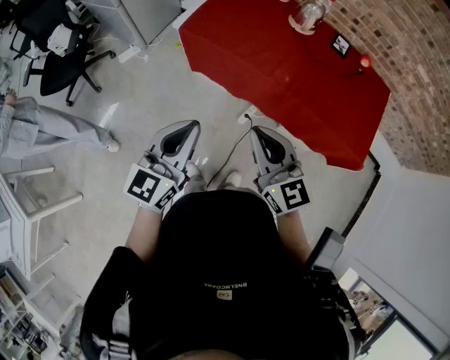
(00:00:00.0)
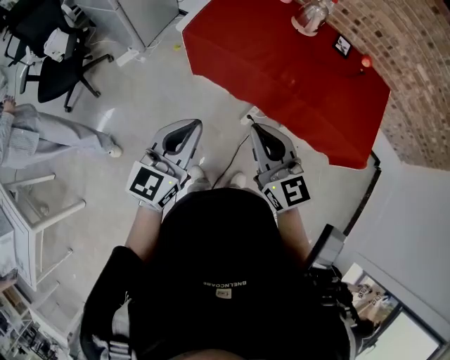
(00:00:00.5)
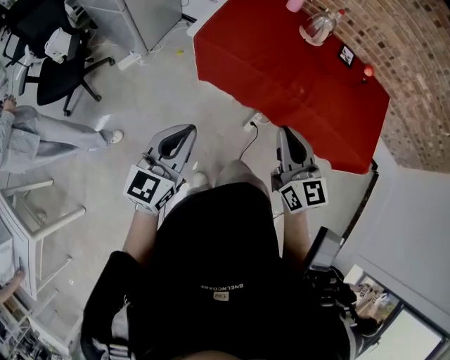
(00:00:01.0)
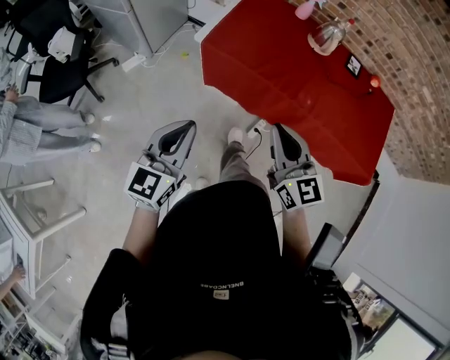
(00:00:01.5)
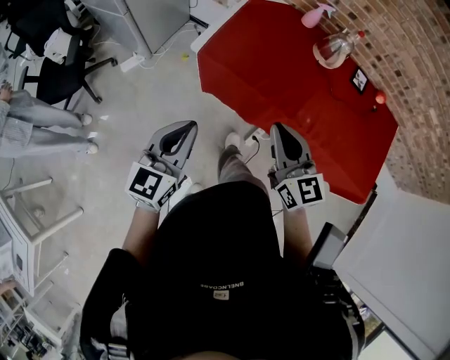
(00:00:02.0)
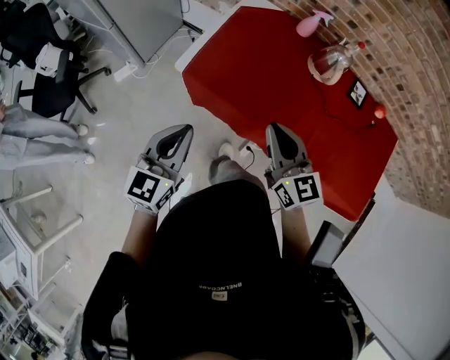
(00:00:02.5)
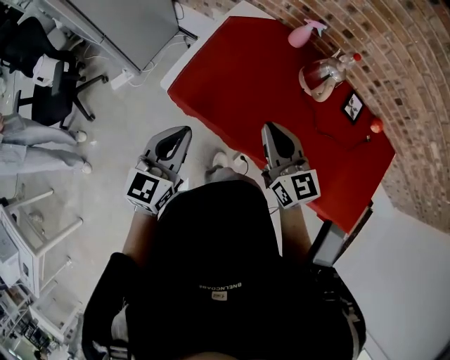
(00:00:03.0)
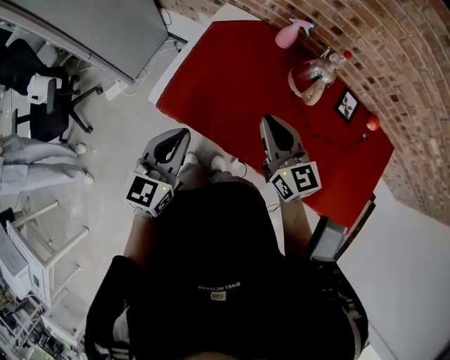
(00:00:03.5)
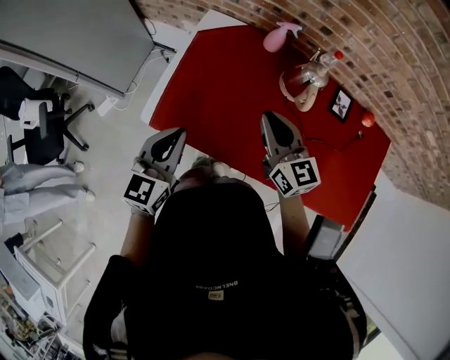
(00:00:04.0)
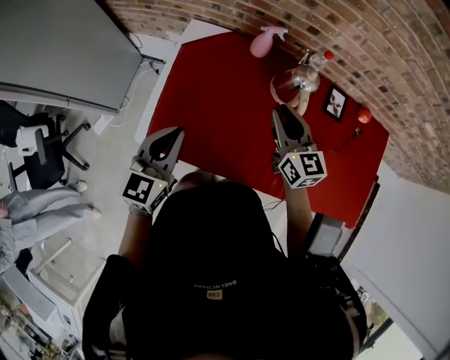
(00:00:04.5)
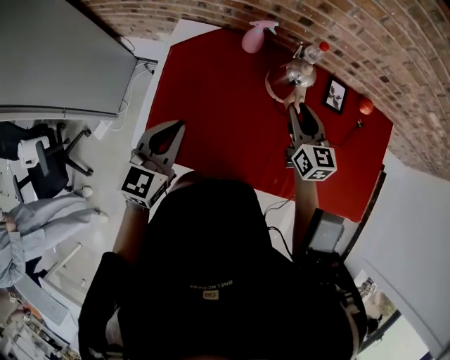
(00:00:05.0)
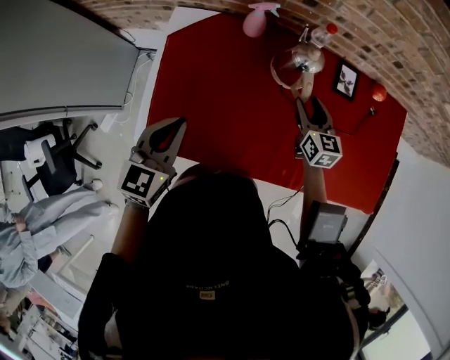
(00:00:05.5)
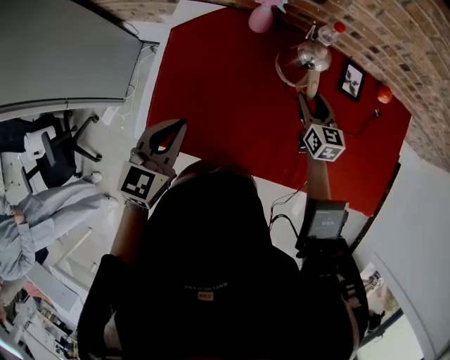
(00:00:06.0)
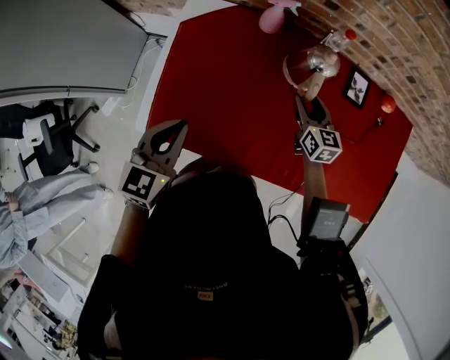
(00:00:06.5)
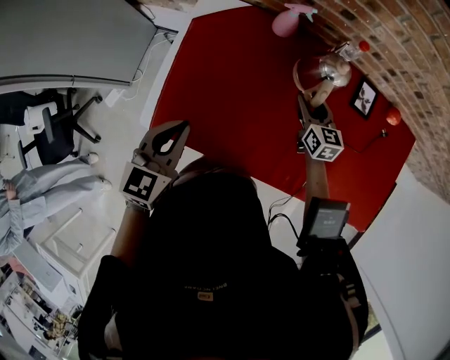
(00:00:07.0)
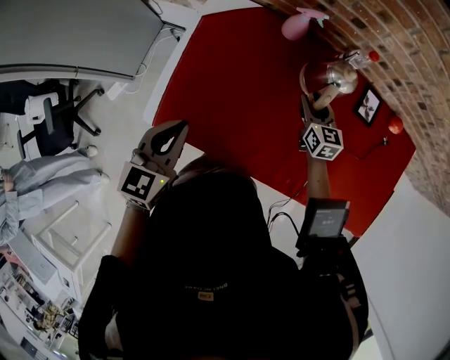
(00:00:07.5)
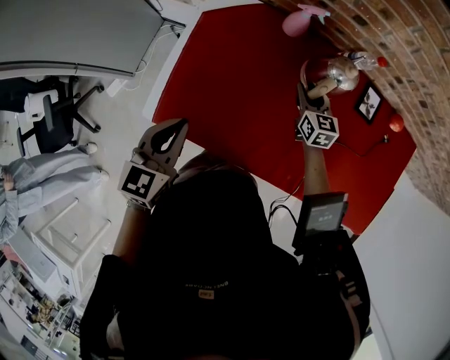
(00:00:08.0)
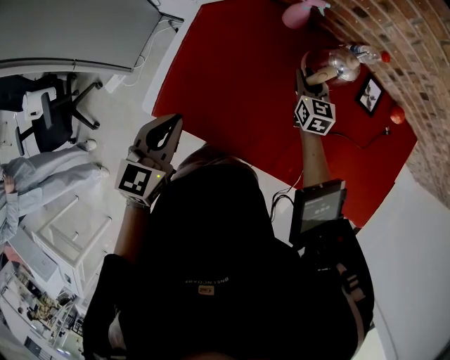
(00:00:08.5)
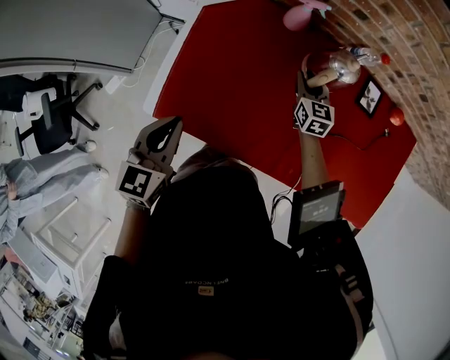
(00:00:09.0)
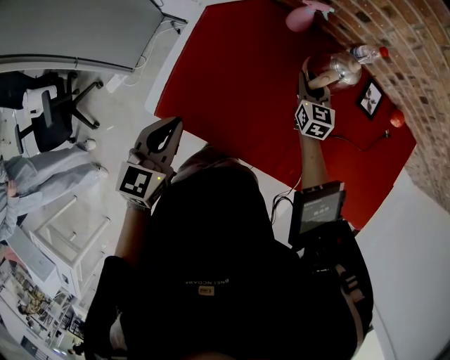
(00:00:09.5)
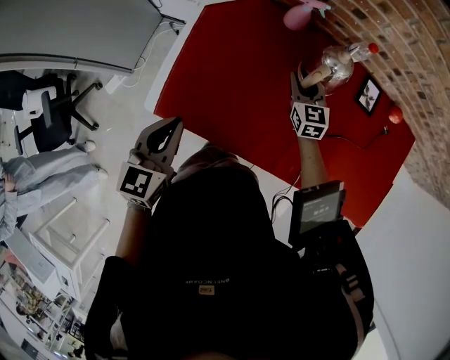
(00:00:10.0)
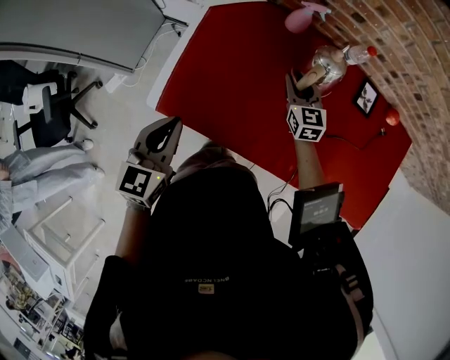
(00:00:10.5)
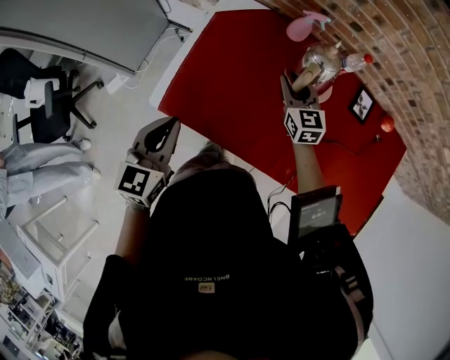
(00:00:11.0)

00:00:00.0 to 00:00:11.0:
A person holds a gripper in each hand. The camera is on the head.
00:00:00.0 to 00:00:02.0: The right gripper goes some 20 cm forward. Meanwhile the left gripper goes roughly 20 cm forward and to the left.
00:00:02.0 to 00:00:03.5: Both grippers move forward and to the right, approximately 25 cm.
00:00:03.5 to 00:00:05.5: The right gripper ends up some 30 cm from where it was, turns by about 40 degrees, and opens its fingers. Meanwhile the left gripper ends up some 20 cm from where it was, and rotates about 20 degrees.
00:00:05.5 to 00:00:07.5: The right gripper is displaced to the left and downward by about 10 cm, while the left gripper shifts by roughly 5 cm.
00:00:07.5 to 00:00:09.0: The grippers move only a little.
00:00:09.0 to 00:00:11.0: The left gripper shifts by about 5 cm, while the right gripper moves upward, to the left and backward, about 10 cm.

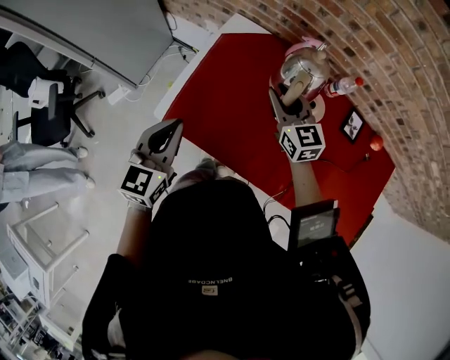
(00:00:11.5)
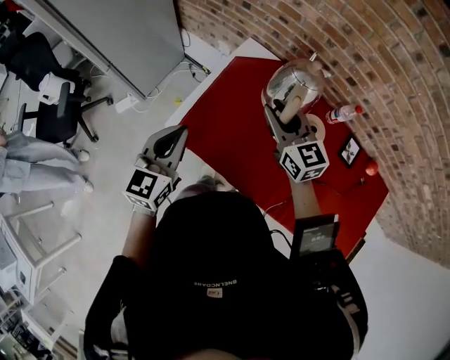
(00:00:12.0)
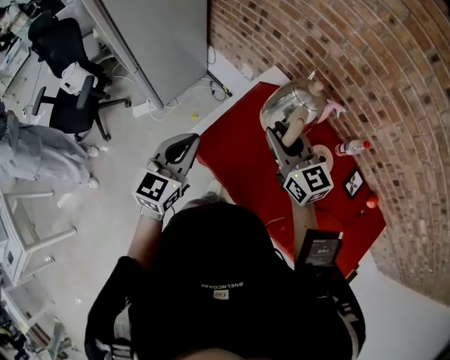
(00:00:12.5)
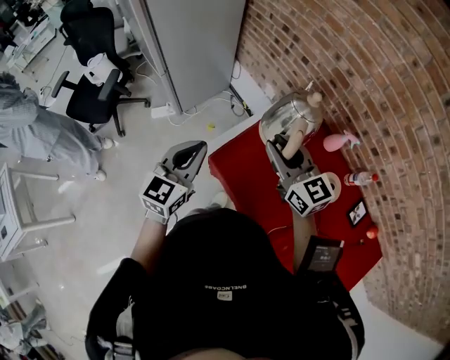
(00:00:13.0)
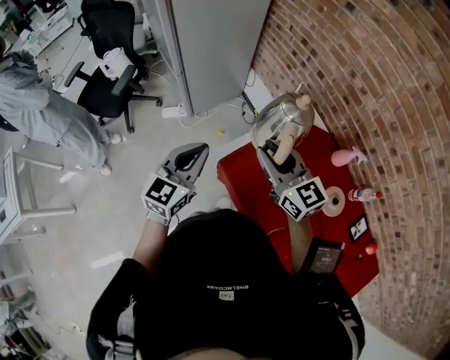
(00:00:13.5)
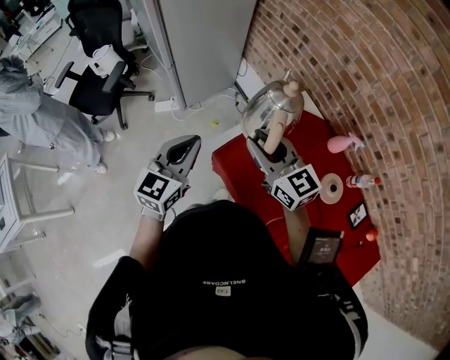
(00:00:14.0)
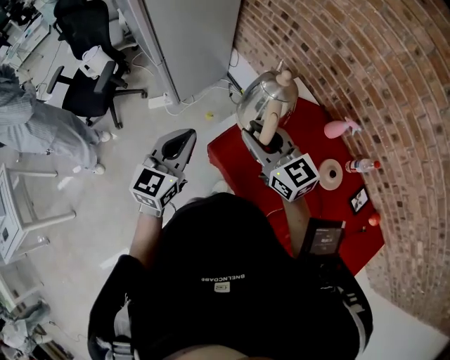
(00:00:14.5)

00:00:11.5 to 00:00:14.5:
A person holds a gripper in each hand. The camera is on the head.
00:00:11.5 to 00:00:13.0: The left gripper is displaced to the left and upward by approximately 15 cm, while the right gripper is displaced to the left and upward by approximately 25 cm, and turns by approximately 30 degrees.
00:00:13.0 to 00:00:14.5: The right gripper shifts roughly 5 cm to the left.

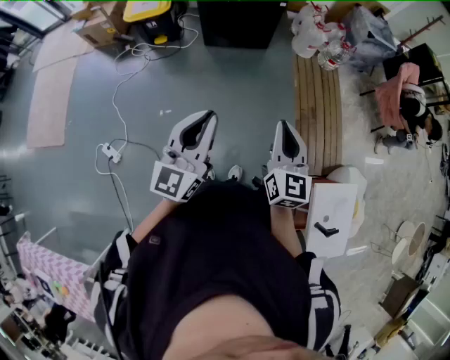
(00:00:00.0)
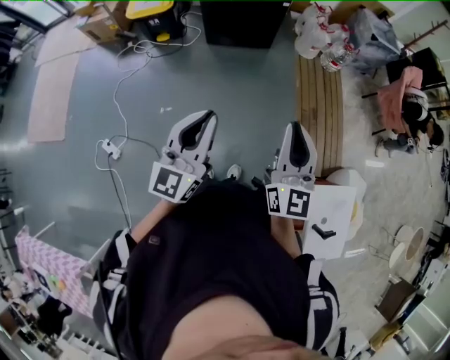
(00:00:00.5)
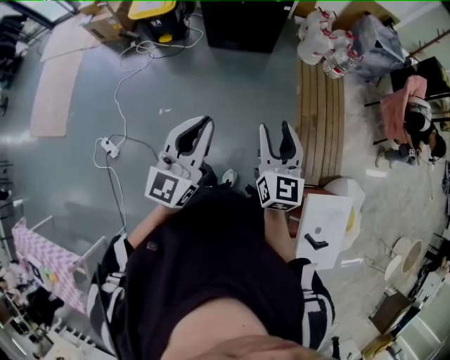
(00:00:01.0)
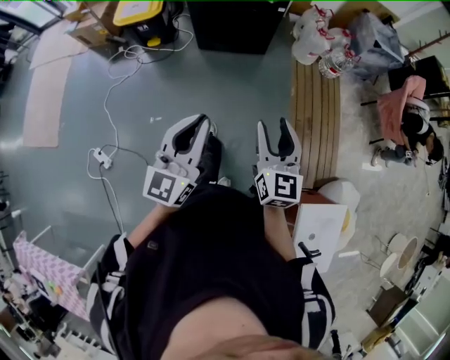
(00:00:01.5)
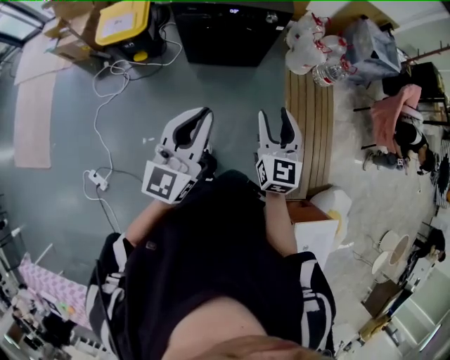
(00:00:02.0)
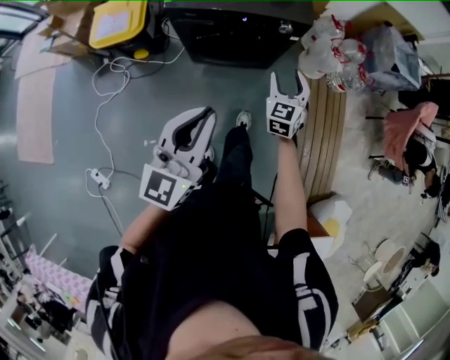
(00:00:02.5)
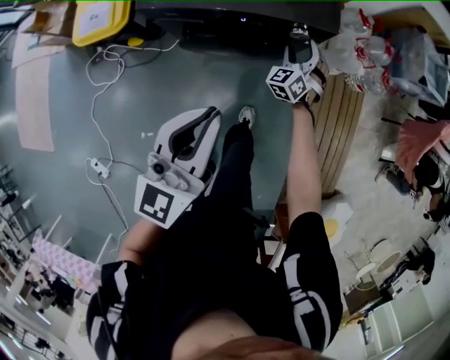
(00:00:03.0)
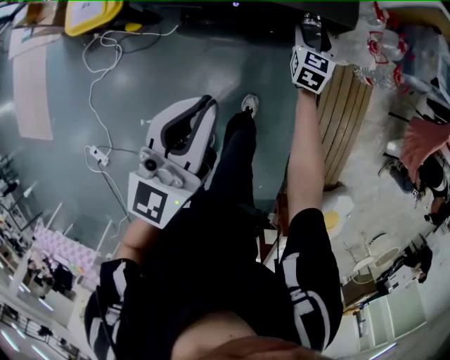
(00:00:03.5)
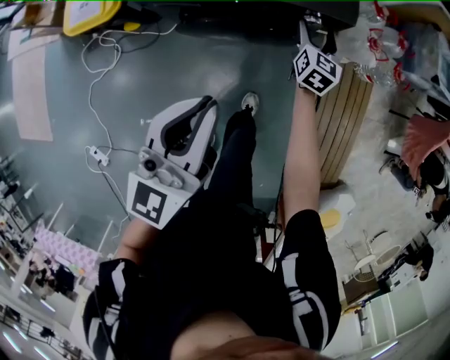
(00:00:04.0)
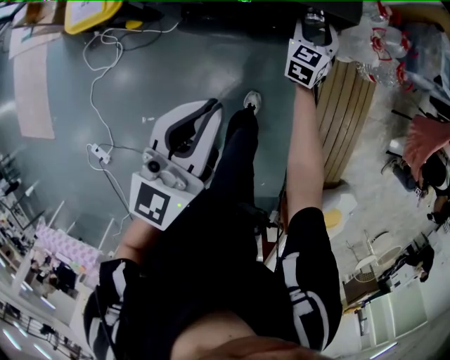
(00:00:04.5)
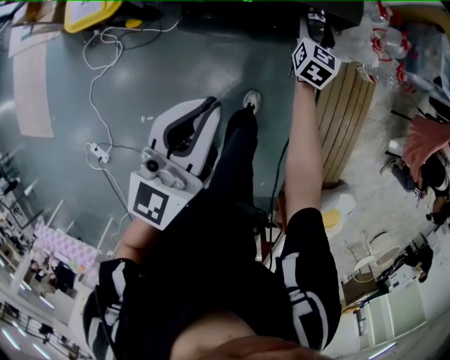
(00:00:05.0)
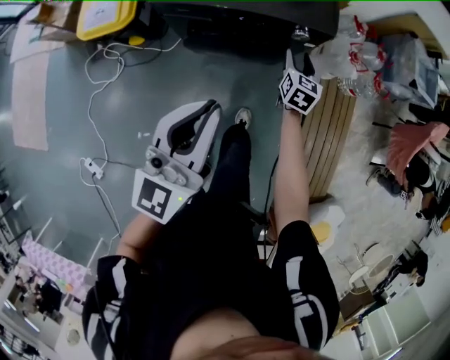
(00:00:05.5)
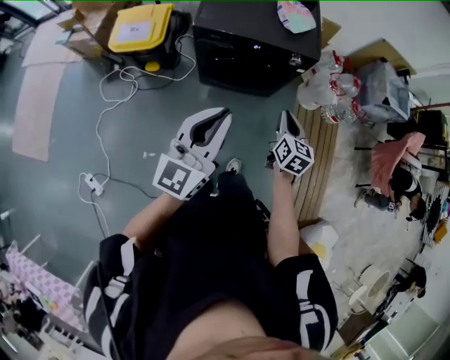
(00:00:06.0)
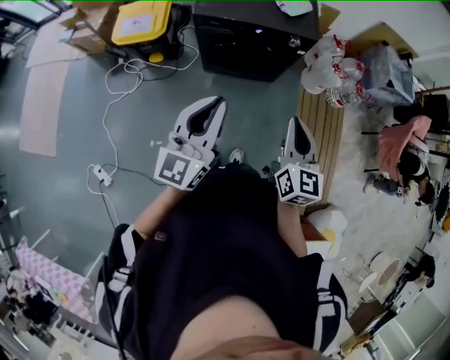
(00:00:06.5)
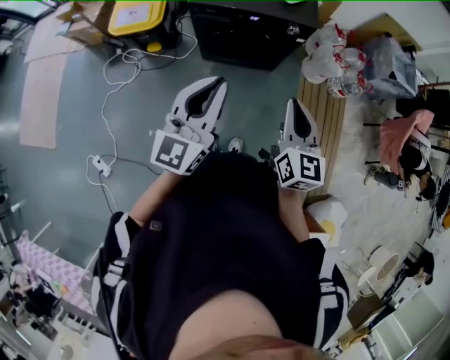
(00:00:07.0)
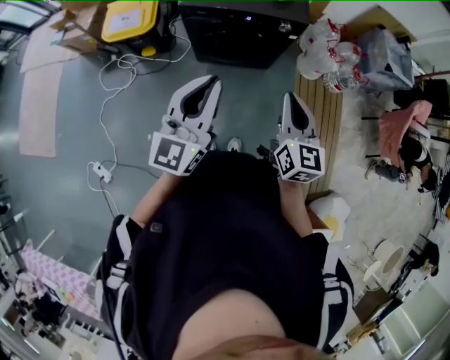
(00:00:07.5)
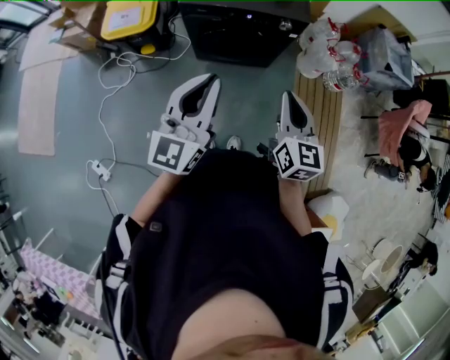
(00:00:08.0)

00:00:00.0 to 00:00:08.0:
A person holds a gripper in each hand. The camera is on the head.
00:00:00.0 to 00:00:02.0: The grippers both shift forward by approximately 40 cm. The right gripper opens its fingers.
00:00:02.0 to 00:00:04.0: The left gripper heads forward and downward, covering some 40 cm. Meanwhile the right gripper moves forward and downward, some 70 cm.
00:00:04.0 to 00:00:06.0: The right gripper travels backward and upward by approximately 40 cm, and closes; the left gripper moves backward and upward, about 25 cm.
00:00:06.0 to 00:00:08.0: The right gripper goes about 15 cm upward and backward.

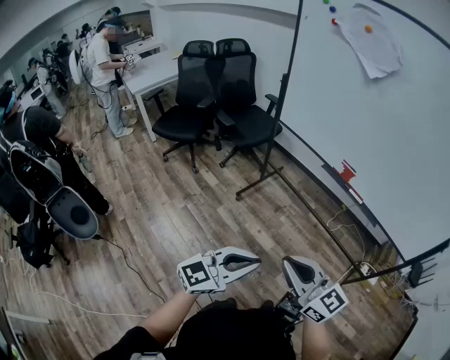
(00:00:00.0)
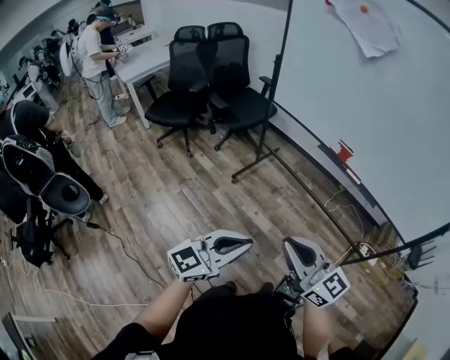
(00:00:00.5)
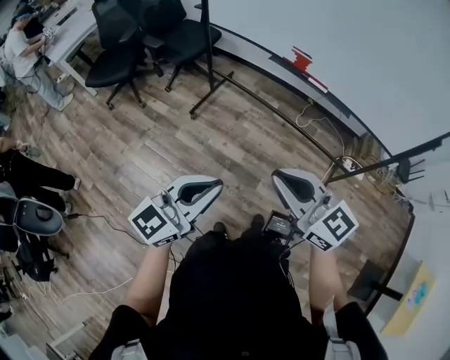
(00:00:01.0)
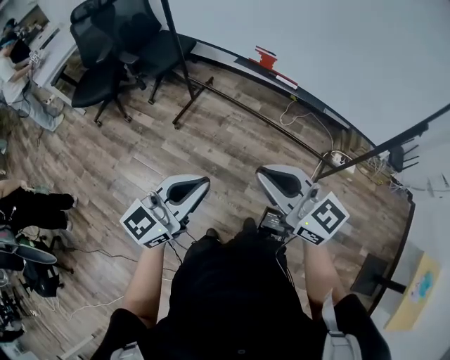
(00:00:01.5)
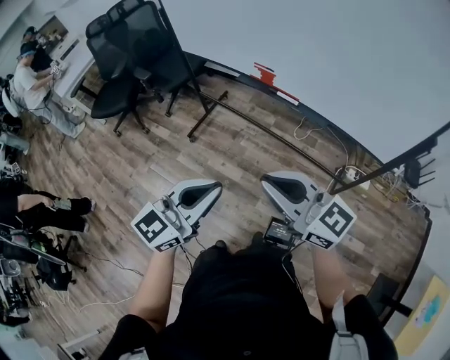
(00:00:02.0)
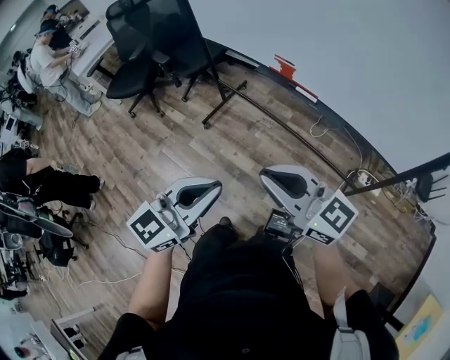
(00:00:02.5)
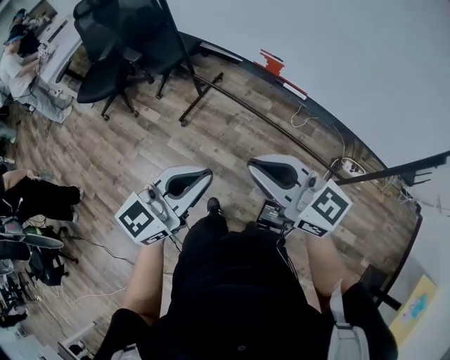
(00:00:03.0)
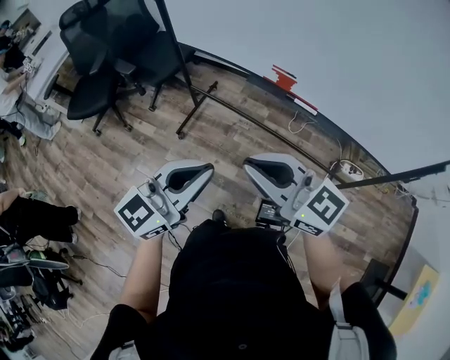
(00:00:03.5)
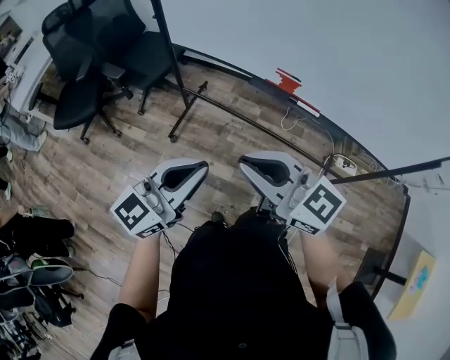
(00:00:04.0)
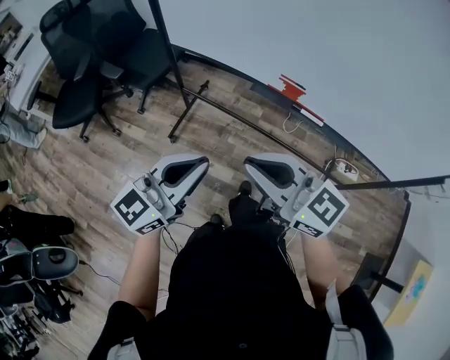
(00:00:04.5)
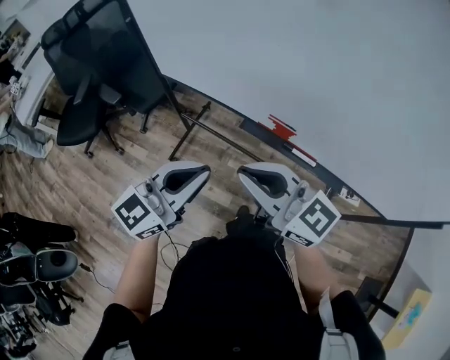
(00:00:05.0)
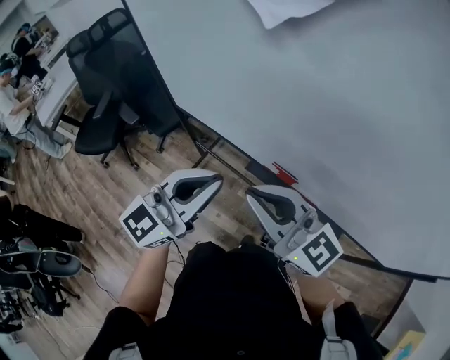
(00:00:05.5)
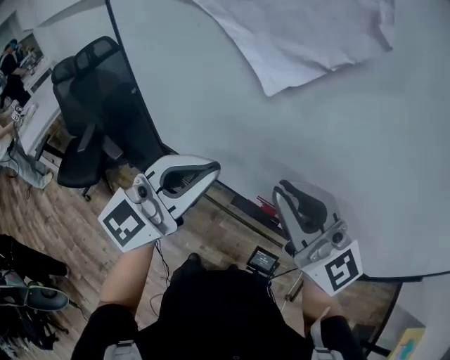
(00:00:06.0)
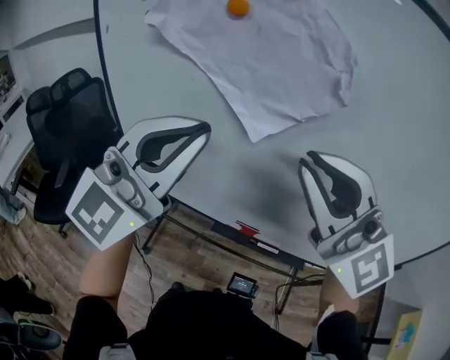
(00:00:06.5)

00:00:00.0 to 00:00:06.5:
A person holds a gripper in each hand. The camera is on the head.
00:00:00.0 to 00:00:02.0: The right gripper shifts about 25 cm to the right. Meanwhile the left gripper goes roughly 25 cm to the right and forward.
00:00:02.0 to 00:00:04.5: Both grippers travel together forward and to the left, roughly 30 cm.
00:00:04.5 to 00:00:06.5: Both grippers travel together upward and forward, roughly 40 cm. The right gripper rotates around the line of its fingers by approximately 50 degrees, counterclockwise from behind. Meanwhile the left gripper changes its angle by about 40 degrees.
